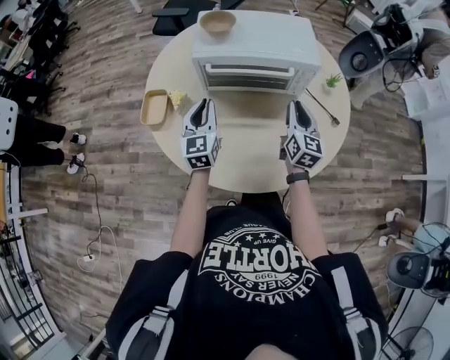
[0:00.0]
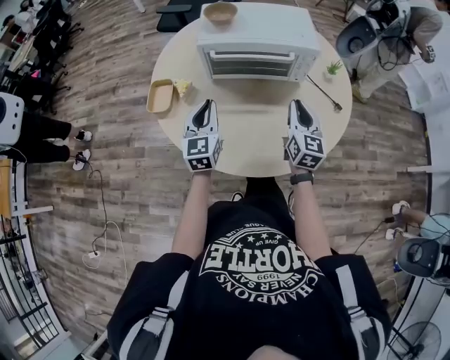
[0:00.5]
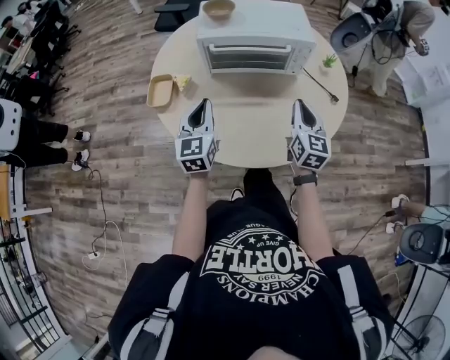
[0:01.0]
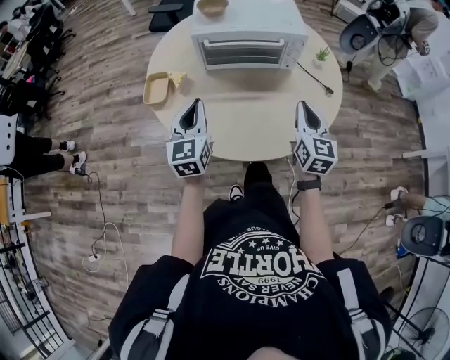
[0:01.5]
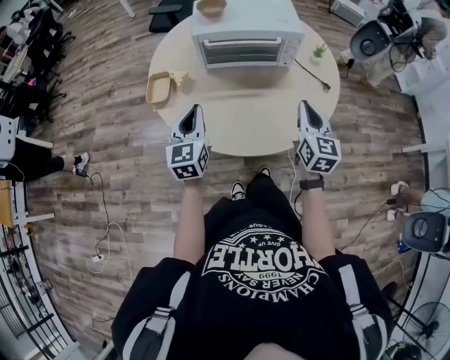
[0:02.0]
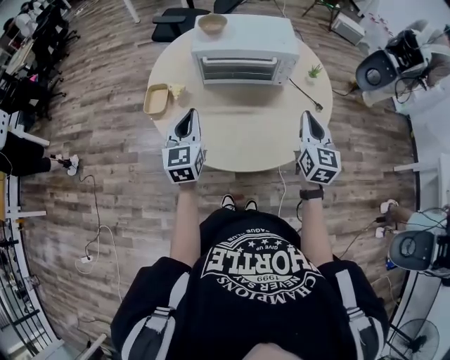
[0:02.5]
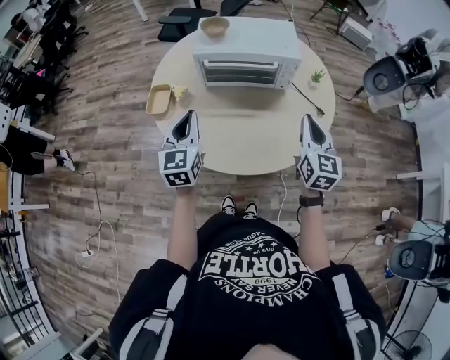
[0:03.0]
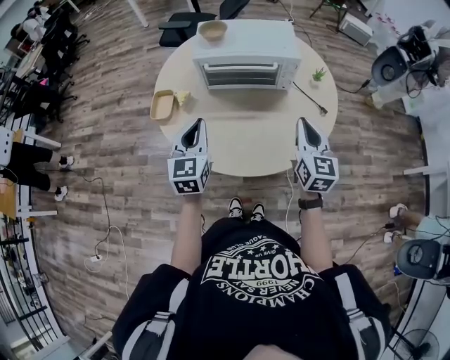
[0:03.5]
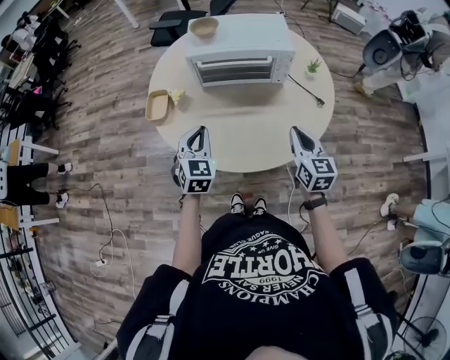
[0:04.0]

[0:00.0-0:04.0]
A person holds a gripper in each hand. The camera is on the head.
0:00.0 to 0:02.0: The two grippers go roughly 20 cm backward.
0:02.0 to 0:04.0: The left gripper goes roughly 5 cm to the right, goes upward and returns, some 5 cm each way, and changes its angle by some 30 degrees. Meanwhile the right gripper travels upward and back again, some 5 cm each way.

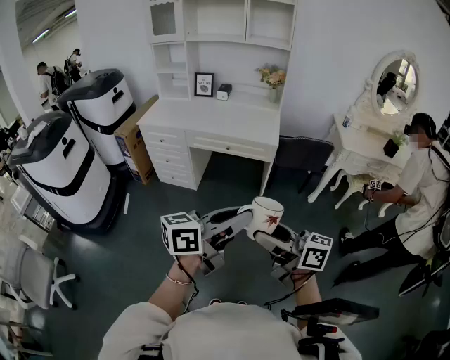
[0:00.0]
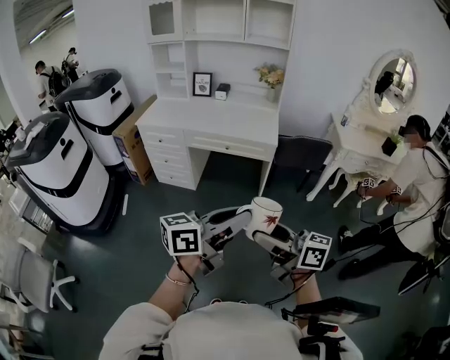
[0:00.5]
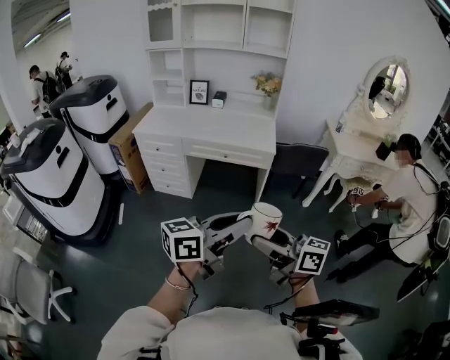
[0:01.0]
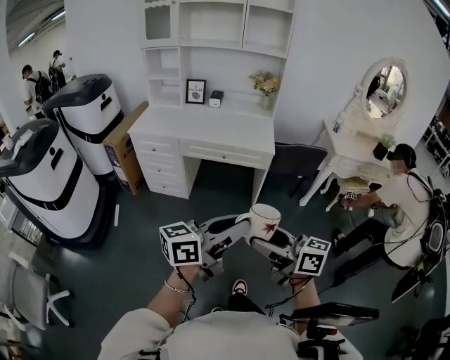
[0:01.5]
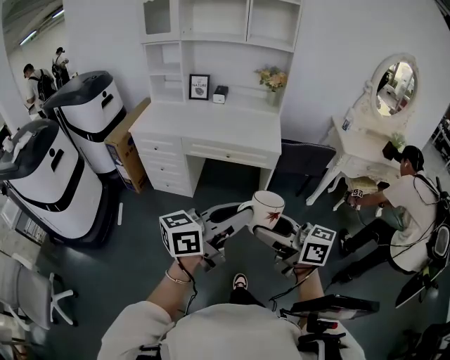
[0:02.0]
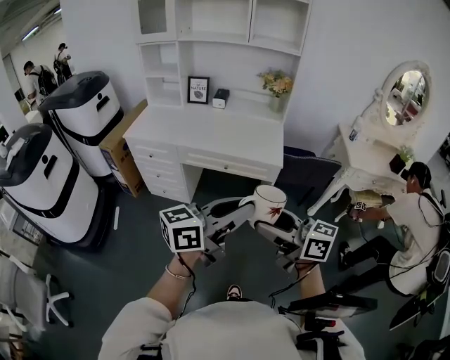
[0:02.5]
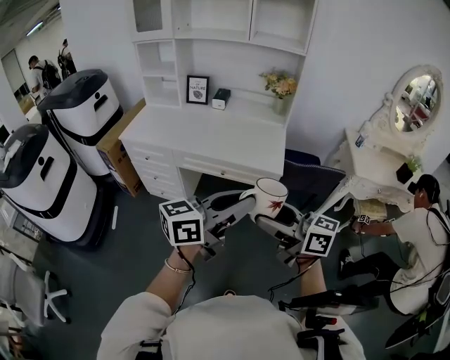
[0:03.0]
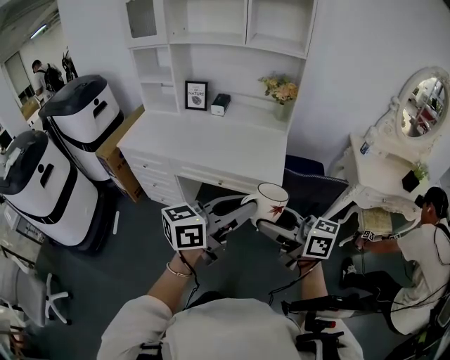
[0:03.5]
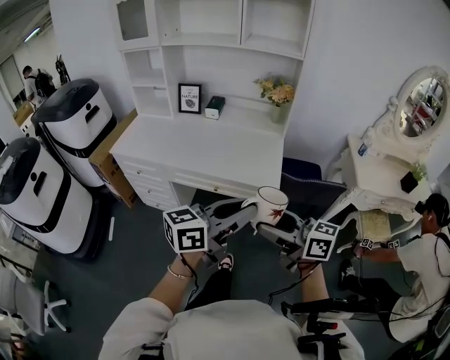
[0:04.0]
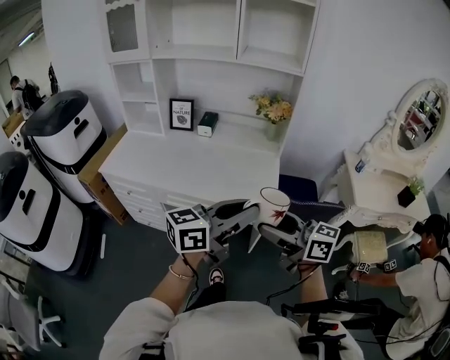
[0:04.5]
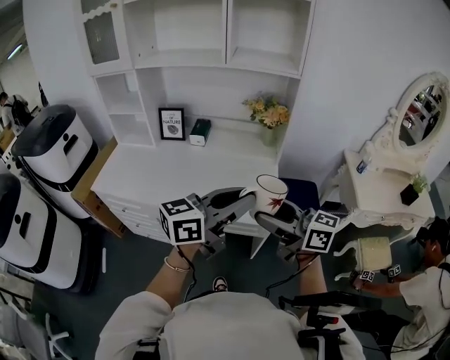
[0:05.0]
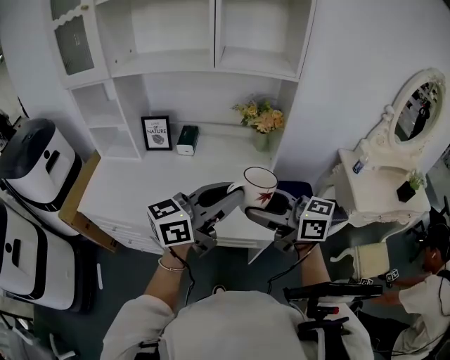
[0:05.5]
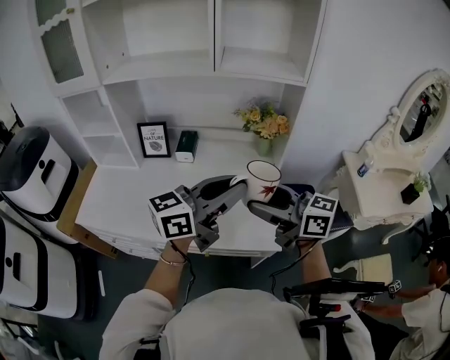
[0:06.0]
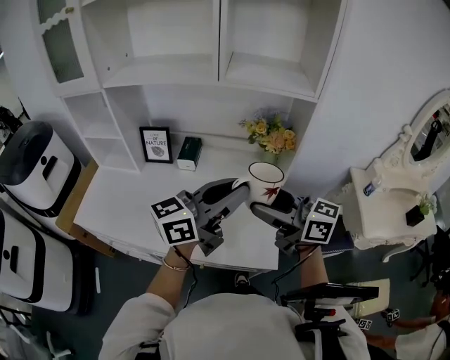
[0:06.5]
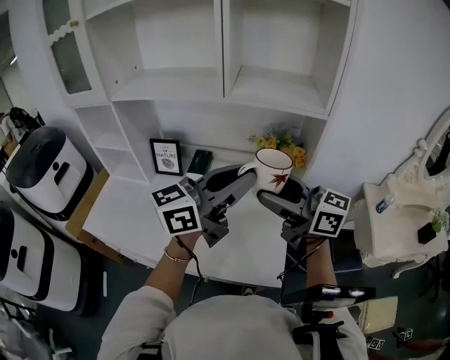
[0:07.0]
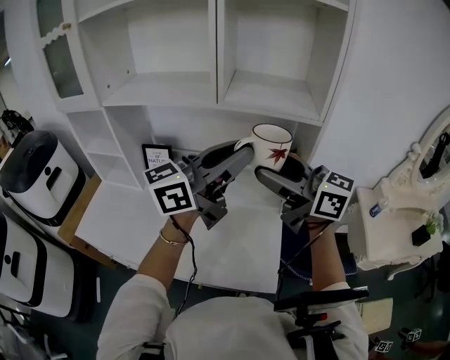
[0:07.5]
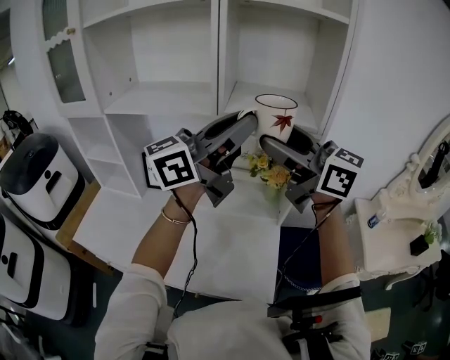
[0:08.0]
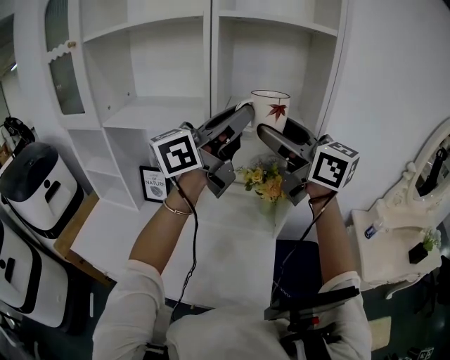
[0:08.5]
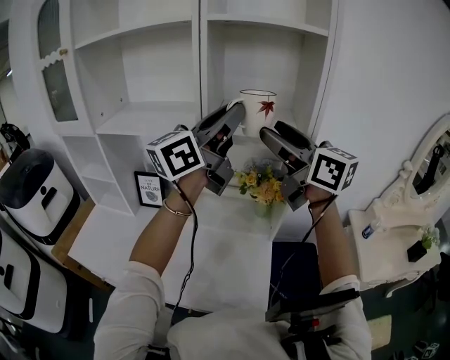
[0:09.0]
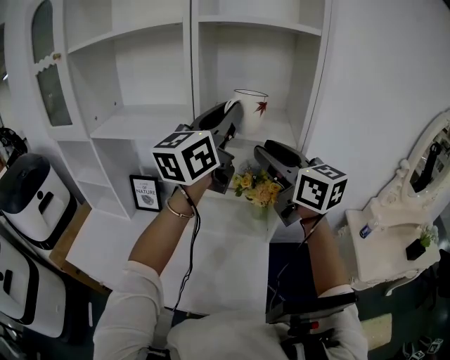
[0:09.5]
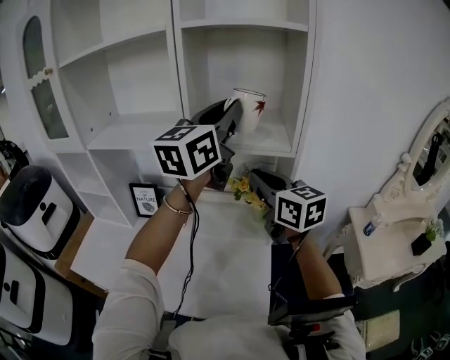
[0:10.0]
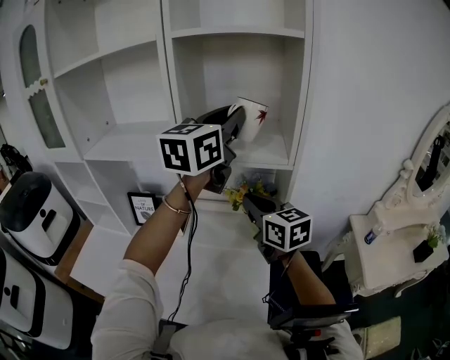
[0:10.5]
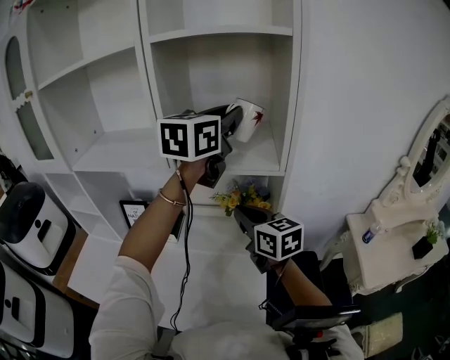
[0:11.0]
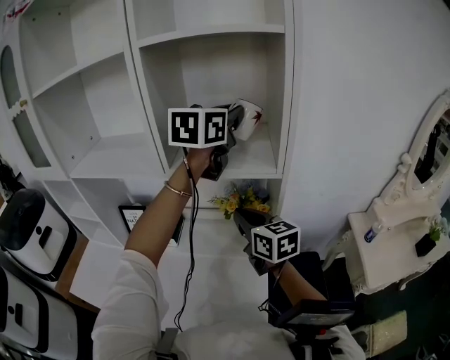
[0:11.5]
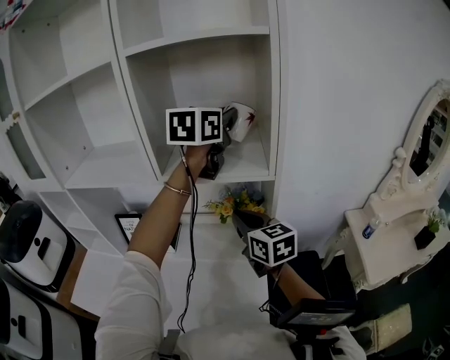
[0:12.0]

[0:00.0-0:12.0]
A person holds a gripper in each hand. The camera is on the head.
0:00.0 to 0:02.0: The left gripper travels forward by about 10 cm. The right gripper is displaced forward and to the left by some 10 cm.
0:02.0 to 0:04.0: The two grippers go some 30 cm forward.
0:04.0 to 0:06.0: The two grippers go approximately 35 cm forward.
0:06.0 to 0:08.0: Both grippers travel together upward and forward, approximately 25 cm.
0:08.0 to 0:10.0: The right gripper travels downward and forward by some 10 cm, turns by some 30 degrees, and closes up. Meanwhile the left gripper shifts approximately 10 cm forward, and changes its angle by roughly 30 degrees.
0:10.0 to 0:12.0: The right gripper heads downward, covering some 10 cm. The left gripper shifts about 15 cm forward and to the right, and swivels roughly 20 degrees.

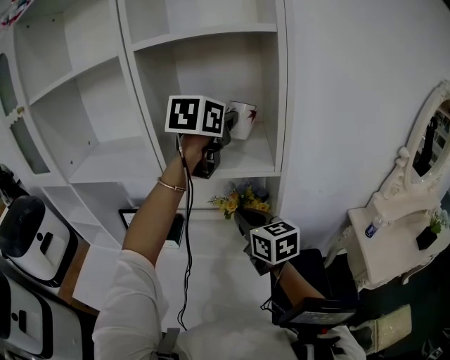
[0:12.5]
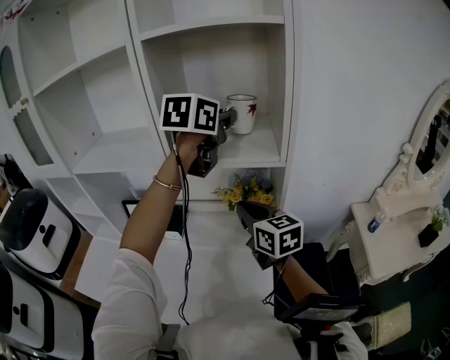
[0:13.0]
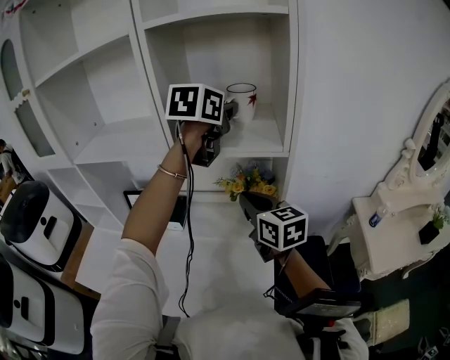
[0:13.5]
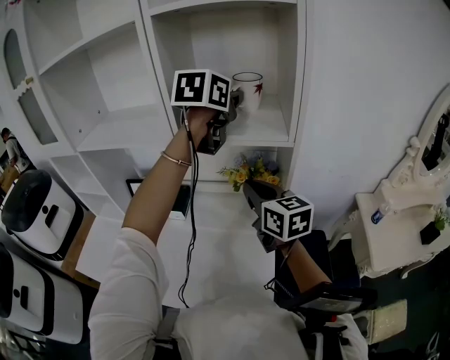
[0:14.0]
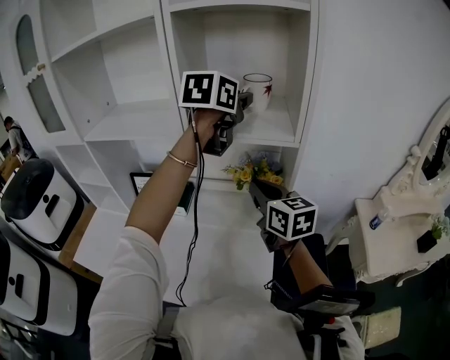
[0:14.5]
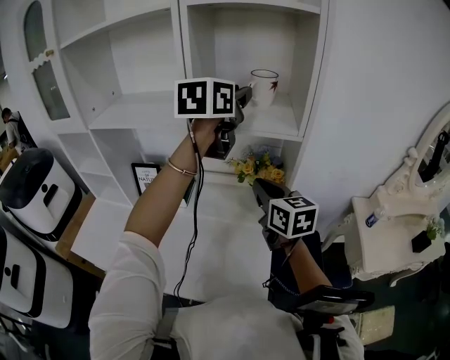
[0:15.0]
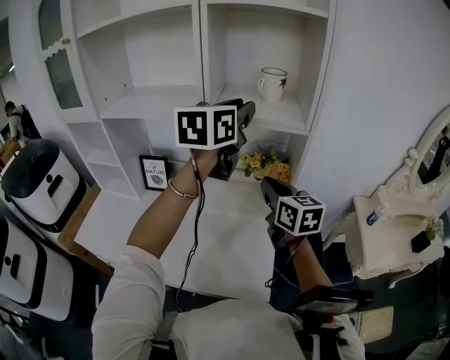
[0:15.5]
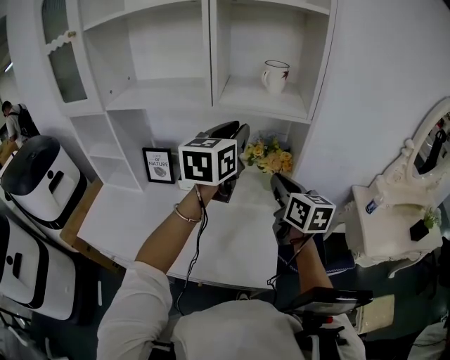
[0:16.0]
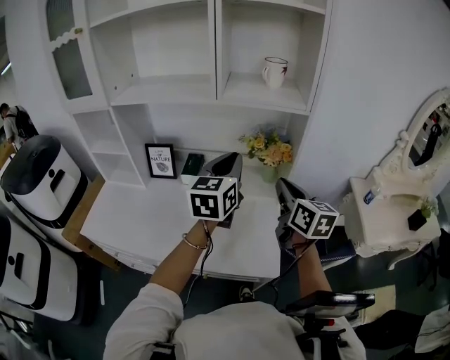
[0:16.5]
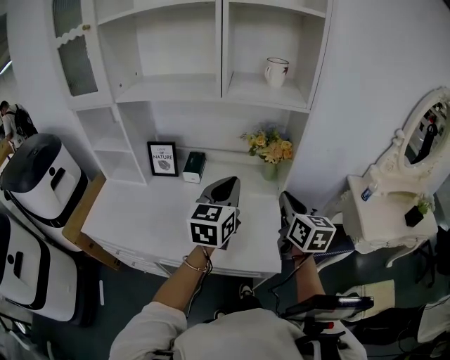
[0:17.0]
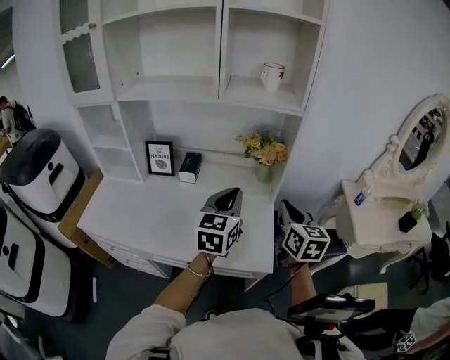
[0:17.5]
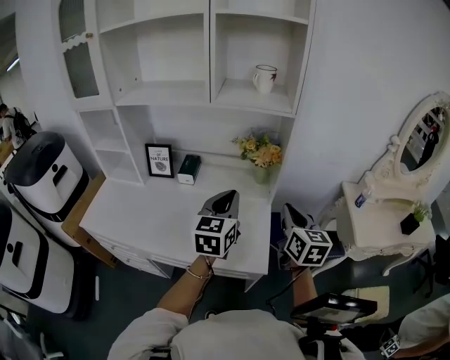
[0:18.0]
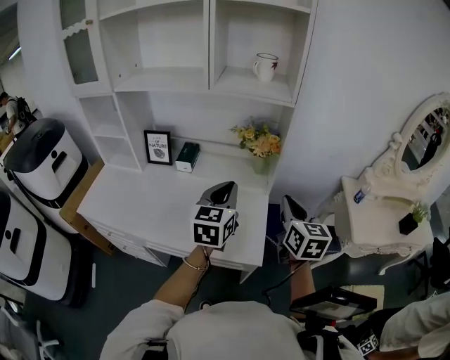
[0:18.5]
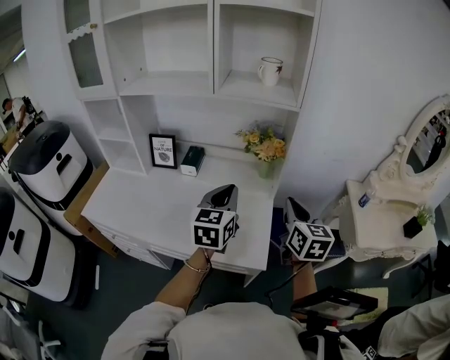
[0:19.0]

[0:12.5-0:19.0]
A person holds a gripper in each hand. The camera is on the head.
0:12.5 to 0:14.5: The grippers stay close to where they were, moving slightly.
0:14.5 to 0:17.0: The right gripper heads backward, covering roughly 15 cm. The left gripper goes some 35 cm backward and downward, and closes its fingers.
0:17.0 to 0:19.0: The left gripper ends up roughly 5 cm from where it was. Meanwhile the right gripper heads to the right, covering some 5 cm.

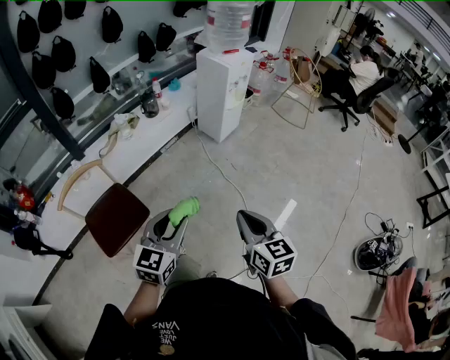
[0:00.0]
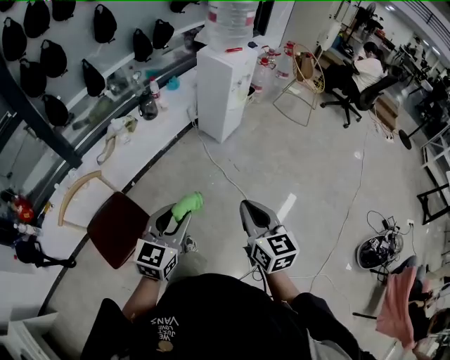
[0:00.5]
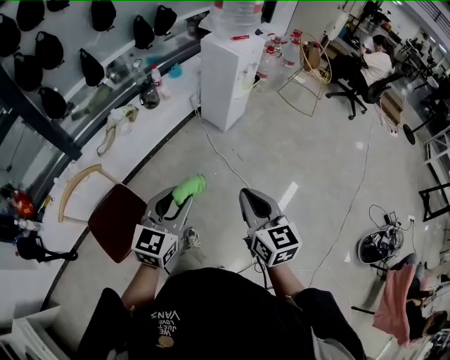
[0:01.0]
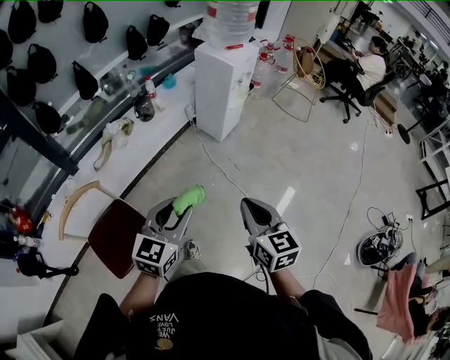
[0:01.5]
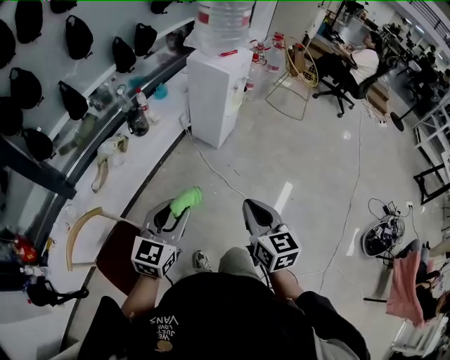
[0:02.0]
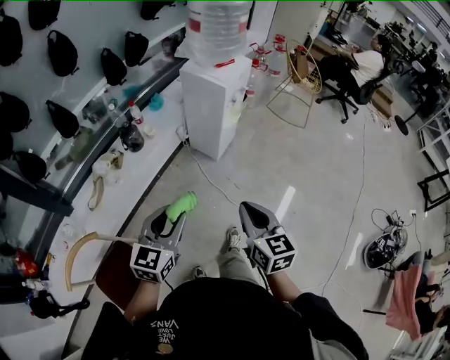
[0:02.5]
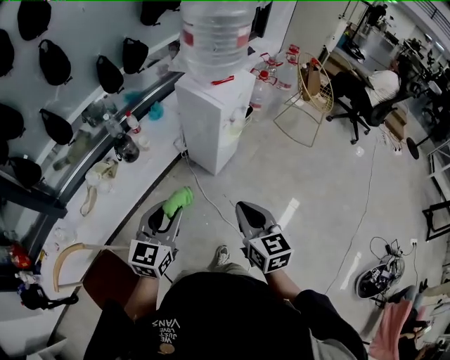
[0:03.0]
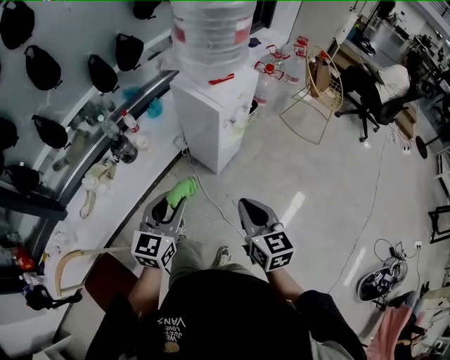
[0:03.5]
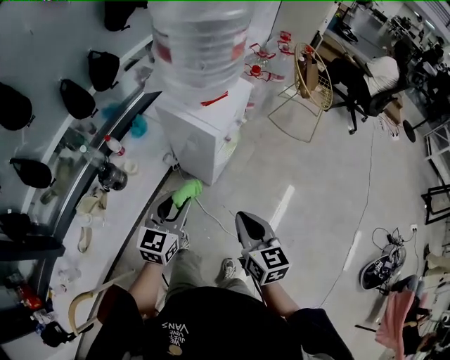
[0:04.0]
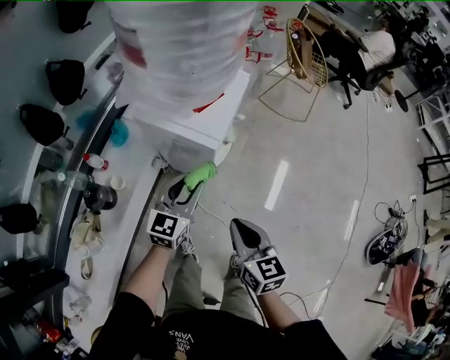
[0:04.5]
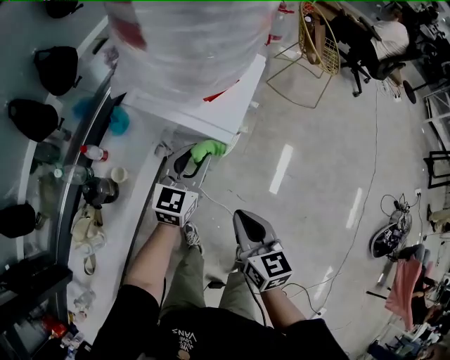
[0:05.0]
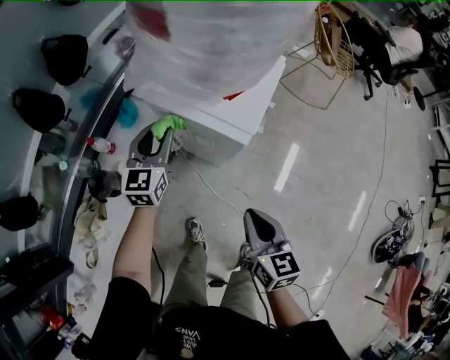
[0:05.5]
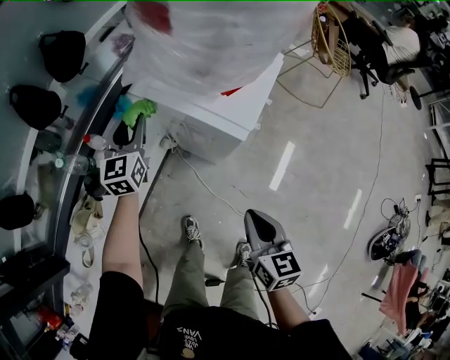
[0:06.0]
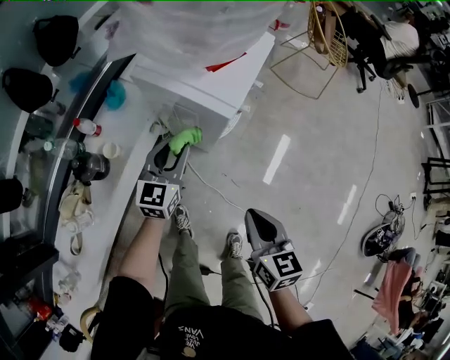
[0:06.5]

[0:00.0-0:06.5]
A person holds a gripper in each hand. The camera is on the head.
0:00.0 to 0:02.0: The two grippers go roughly 25 cm forward and to the left.
0:02.0 to 0:04.5: Both grippers are carried forward, some 50 cm.
0:04.5 to 0:06.5: The left gripper travels downward by approximately 5 cm, and travels to the left and back again, some 20 cm each way, while the right gripper moves approximately 5 cm.
